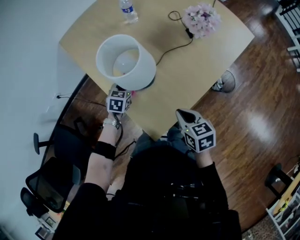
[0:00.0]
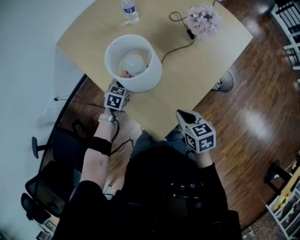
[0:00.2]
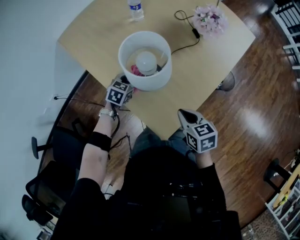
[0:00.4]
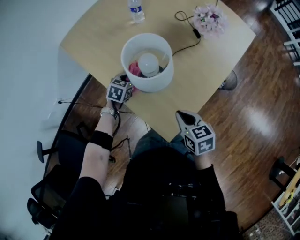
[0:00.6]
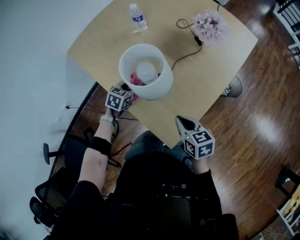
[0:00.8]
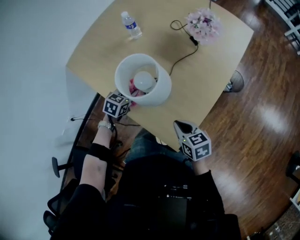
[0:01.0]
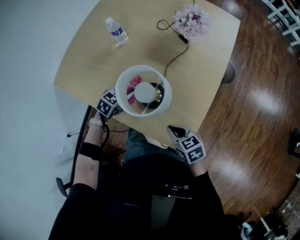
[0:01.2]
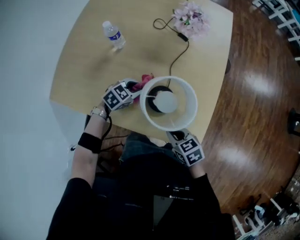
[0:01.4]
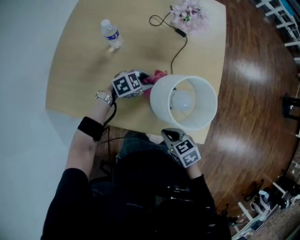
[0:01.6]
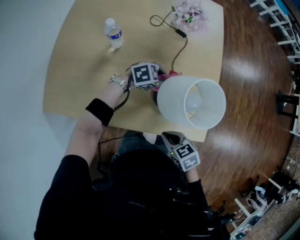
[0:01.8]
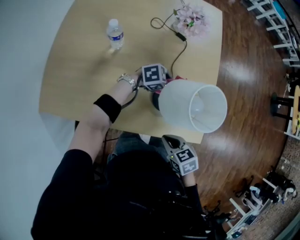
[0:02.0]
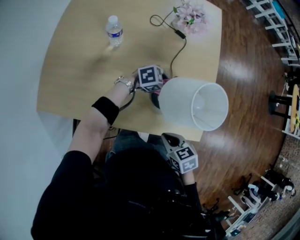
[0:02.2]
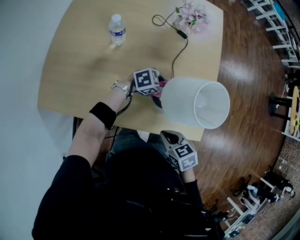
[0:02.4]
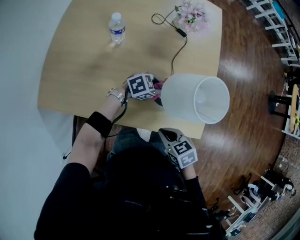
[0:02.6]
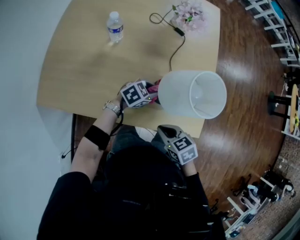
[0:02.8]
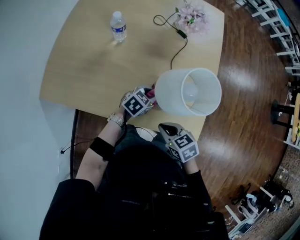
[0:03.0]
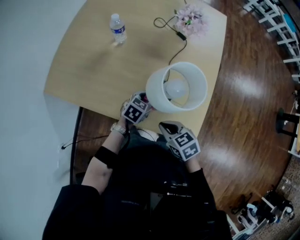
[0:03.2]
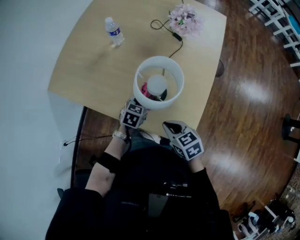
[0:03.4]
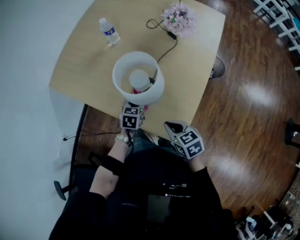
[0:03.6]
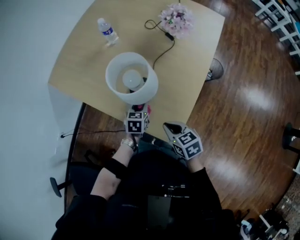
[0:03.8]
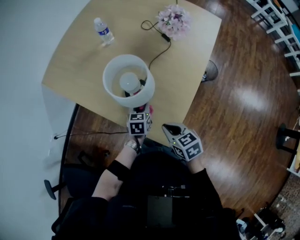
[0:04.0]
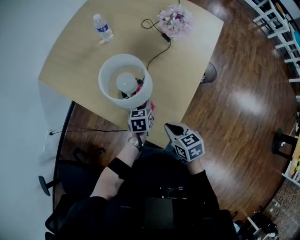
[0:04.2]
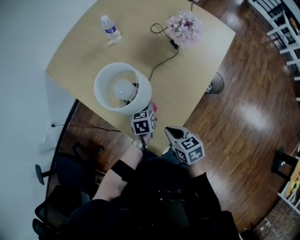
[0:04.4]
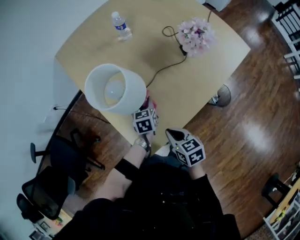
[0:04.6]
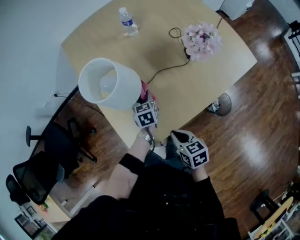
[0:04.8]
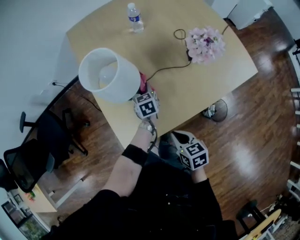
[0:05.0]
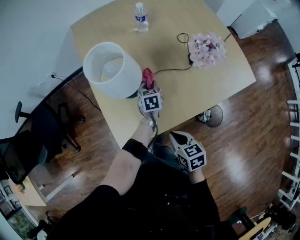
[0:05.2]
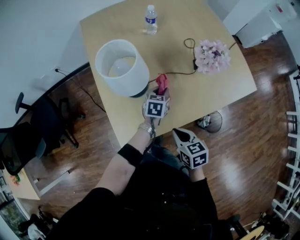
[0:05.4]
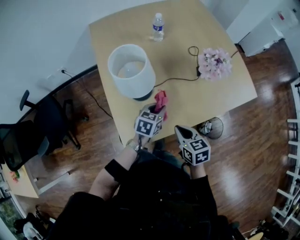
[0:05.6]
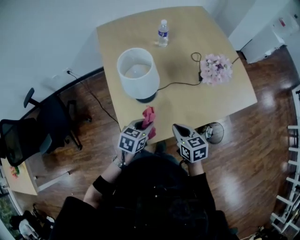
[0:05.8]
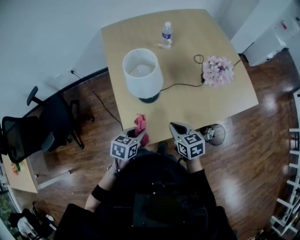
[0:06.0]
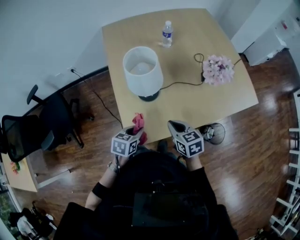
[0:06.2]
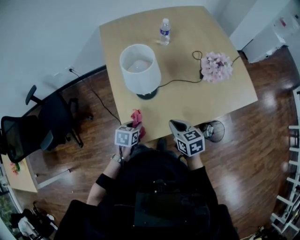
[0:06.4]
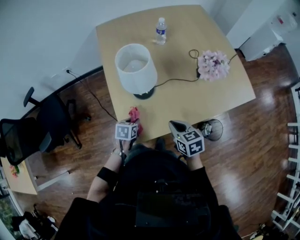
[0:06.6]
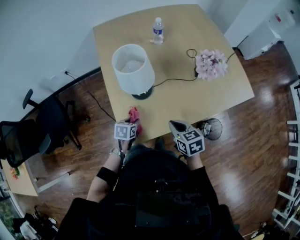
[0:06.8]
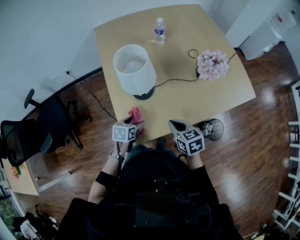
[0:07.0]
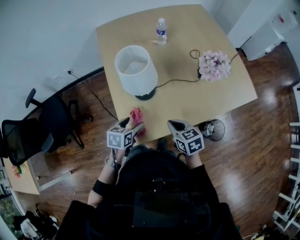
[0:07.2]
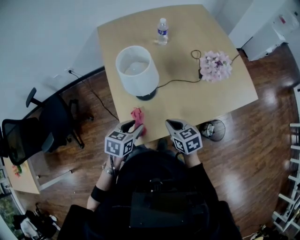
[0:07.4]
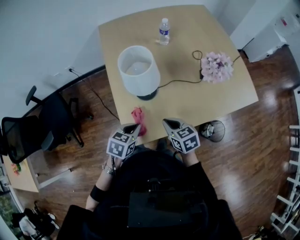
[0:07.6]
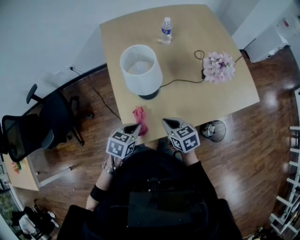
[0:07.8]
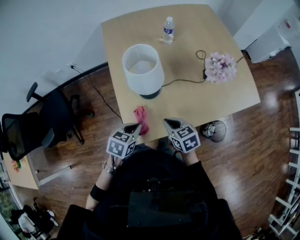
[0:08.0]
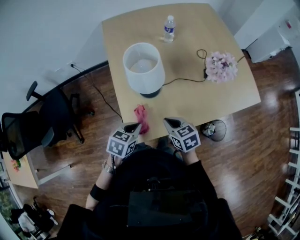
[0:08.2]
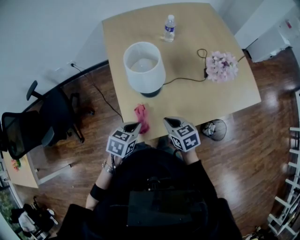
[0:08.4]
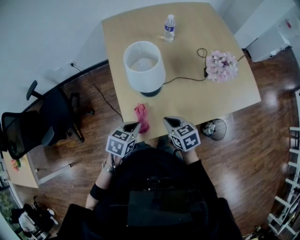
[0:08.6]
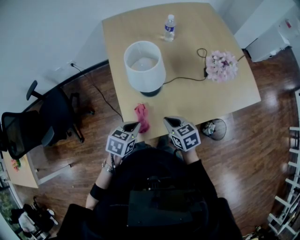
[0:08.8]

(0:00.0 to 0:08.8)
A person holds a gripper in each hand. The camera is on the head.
0:00.0 - 0:01.4: The right gripper moves approximately 20 cm. Meanwhile the left gripper shifts by approximately 10 cm, and turns by about 70 degrees.
0:01.4 - 0:03.0: The right gripper ends up roughly 5 cm from where it was.
0:03.0 - 0:04.4: The right gripper shifts by roughly 25 cm; the left gripper ends up roughly 10 cm from where it was, and swivels roughly 70 degrees.
0:04.4 - 0:05.8: The right gripper changes place by roughly 15 cm, and rotates roughly 30 degrees, while the left gripper changes place by about 15 cm.
0:05.8 - 0:07.4: The left gripper heads to the left, covering some 5 cm, moves roughly 10 cm downward and comes back, and opens and closes again.
0:07.4 - 0:08.8: The left gripper closes up.

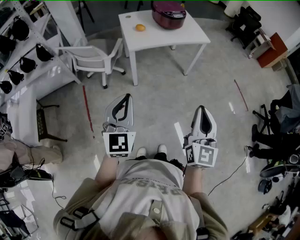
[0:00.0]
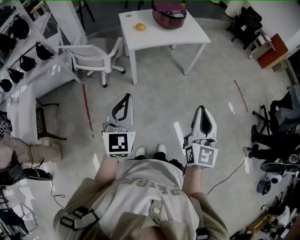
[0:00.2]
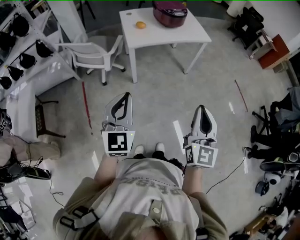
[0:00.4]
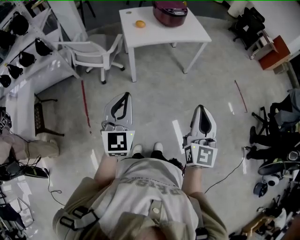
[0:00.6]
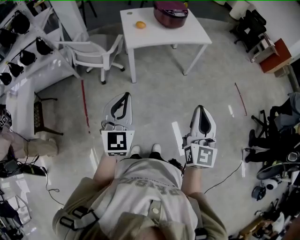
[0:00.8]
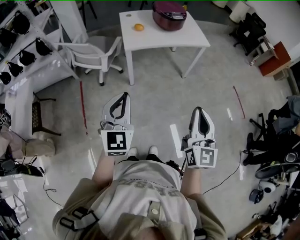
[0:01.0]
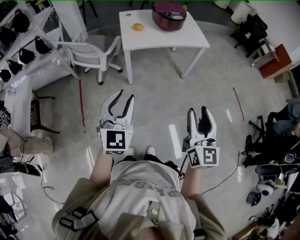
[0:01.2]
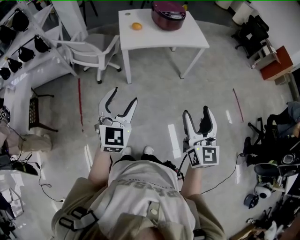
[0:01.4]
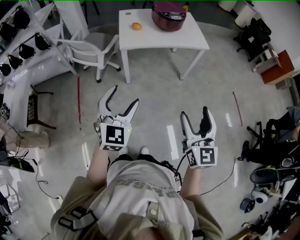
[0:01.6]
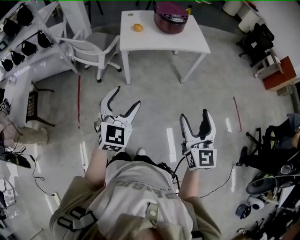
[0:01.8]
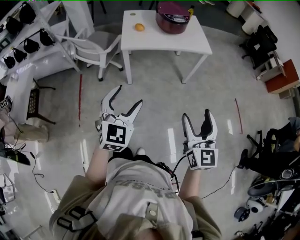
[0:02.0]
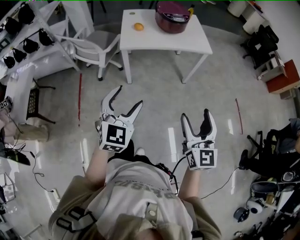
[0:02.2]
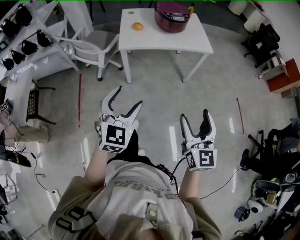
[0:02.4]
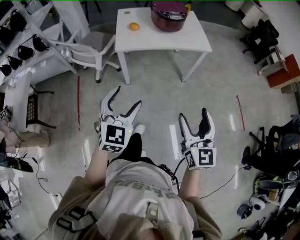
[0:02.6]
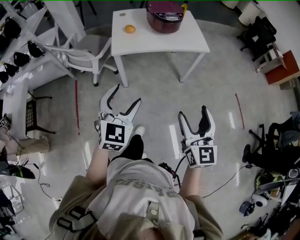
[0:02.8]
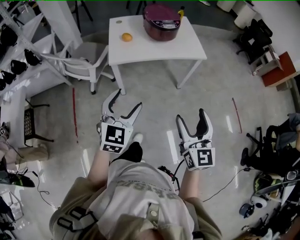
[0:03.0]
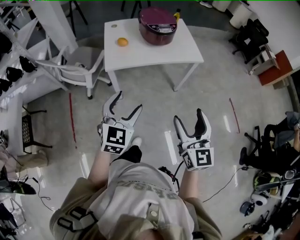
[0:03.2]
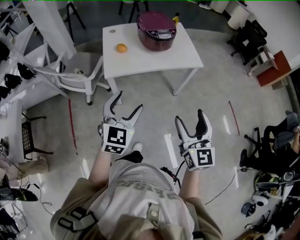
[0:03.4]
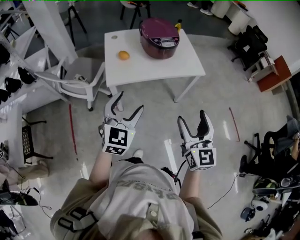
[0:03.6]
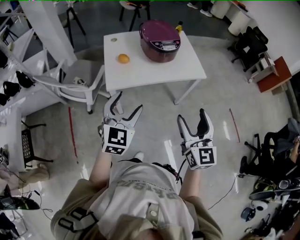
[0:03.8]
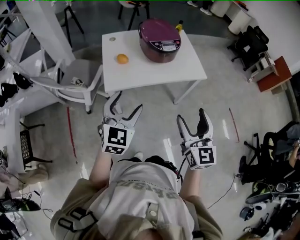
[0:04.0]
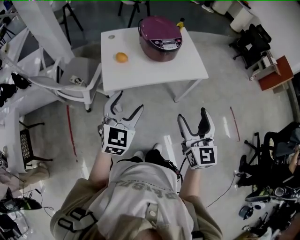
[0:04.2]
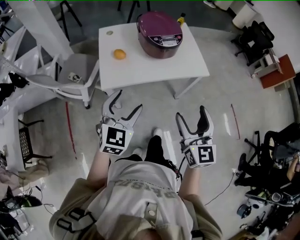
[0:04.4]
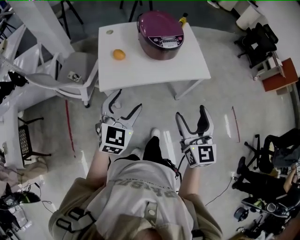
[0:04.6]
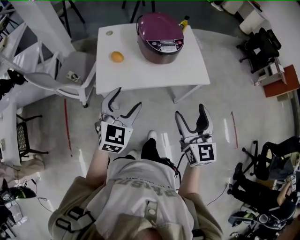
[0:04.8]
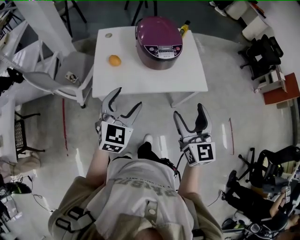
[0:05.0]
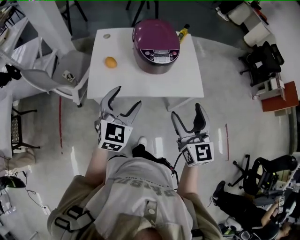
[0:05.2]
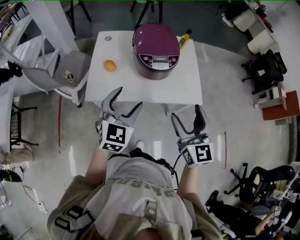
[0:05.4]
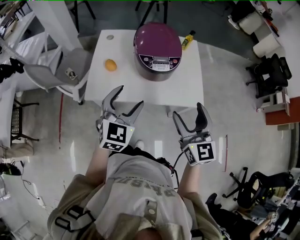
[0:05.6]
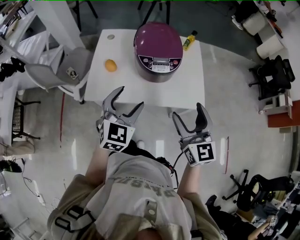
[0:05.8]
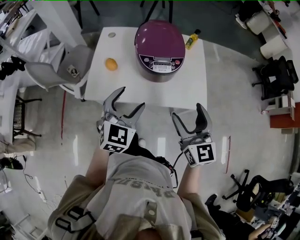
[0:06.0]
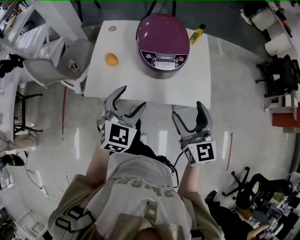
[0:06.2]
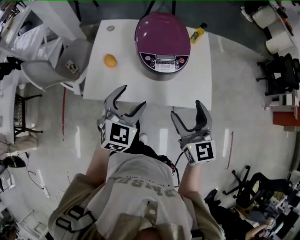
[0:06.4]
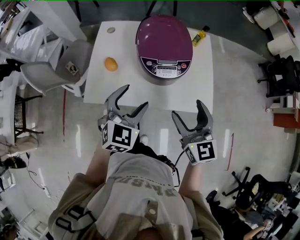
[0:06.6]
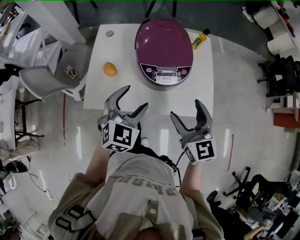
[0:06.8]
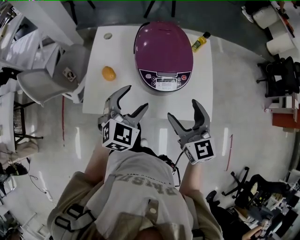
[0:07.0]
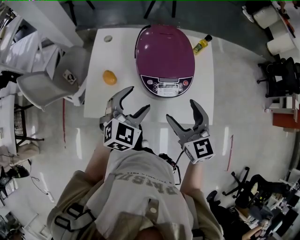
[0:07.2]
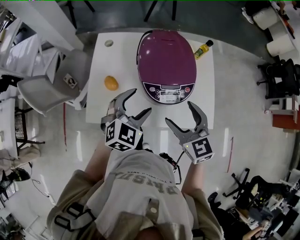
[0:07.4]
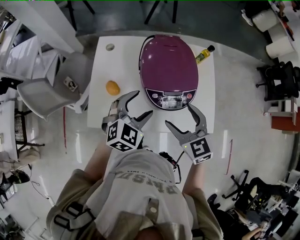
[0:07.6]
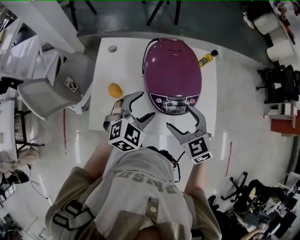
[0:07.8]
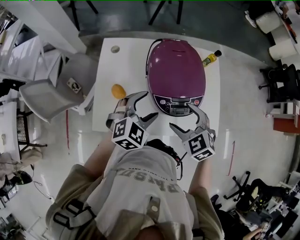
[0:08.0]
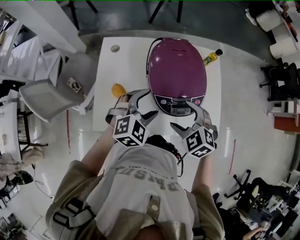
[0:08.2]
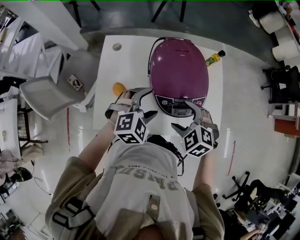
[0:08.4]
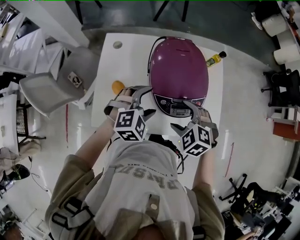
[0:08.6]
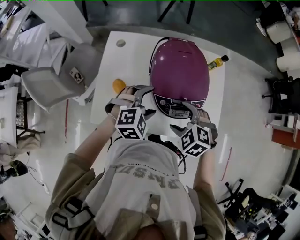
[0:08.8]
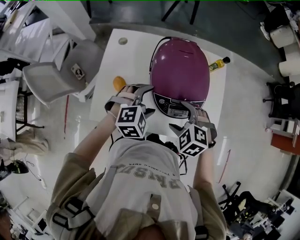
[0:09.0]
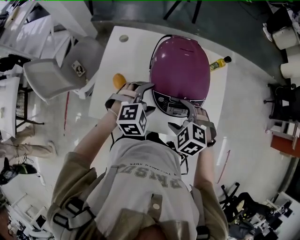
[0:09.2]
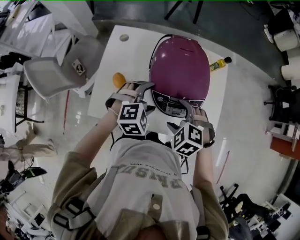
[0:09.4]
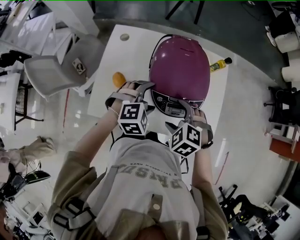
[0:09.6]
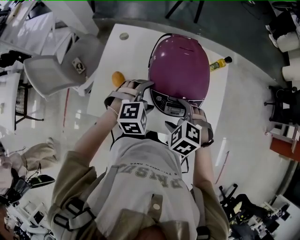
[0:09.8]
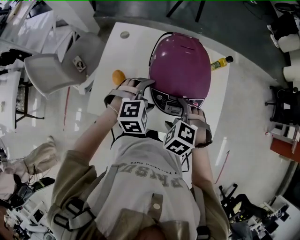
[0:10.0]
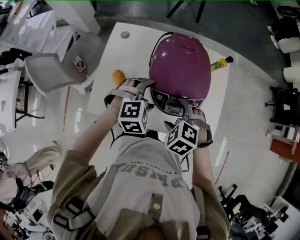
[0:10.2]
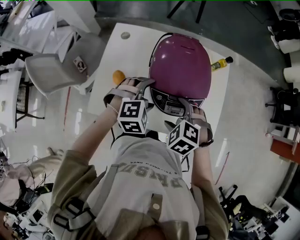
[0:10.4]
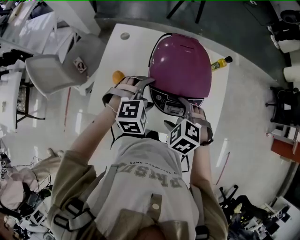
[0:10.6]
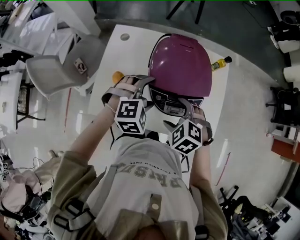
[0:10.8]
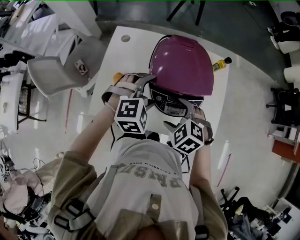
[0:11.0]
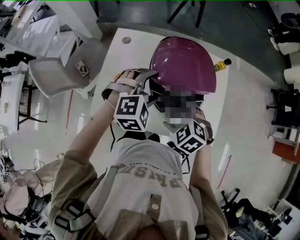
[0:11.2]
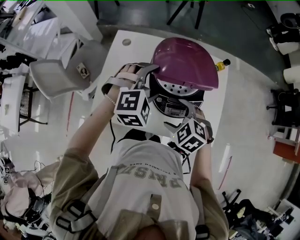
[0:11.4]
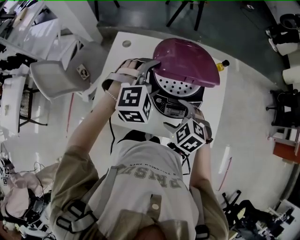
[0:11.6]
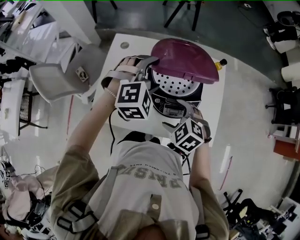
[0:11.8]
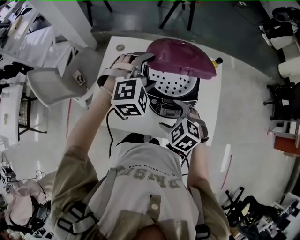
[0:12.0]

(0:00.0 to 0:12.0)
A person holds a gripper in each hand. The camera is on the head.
0:00.0 - 0:01.6: Both grippers travel together to the right and forward, approximately 15 cm. The right gripper opens its fingers, while the left gripper opens up.
0:01.6 - 0:03.0: The two grippers go approximately 15 cm forward.
0:03.0 - 0:04.4: Both grippers move forward, some 20 cm.
0:04.4 - 0:06.0: The grippers both shift forward and to the right by approximately 25 cm. The right gripper rotates some 20 degrees.
0:06.0 - 0:07.6: The right gripper is displaced forward, to the left and downward by roughly 20 cm, and swivels roughly 30 degrees; the left gripper heads forward, covering roughly 20 cm.
0:07.6 - 0:09.0: The left gripper travels downward by roughly 5 cm, and turns by approximately 20 degrees, while the right gripper goes approximately 10 cm downward, and angles its fingers downward, by roughly 30 degrees.
0:09.0 - 0:10.4: There are only small adjustments of the grippers.
0:10.4 - 0:12.0: The left gripper is displaced upward and forward by roughly 15 cm.

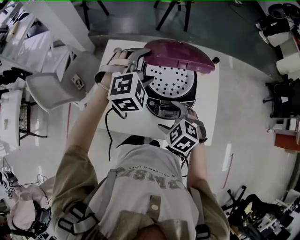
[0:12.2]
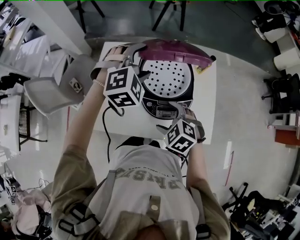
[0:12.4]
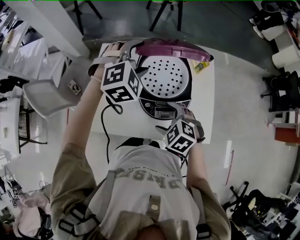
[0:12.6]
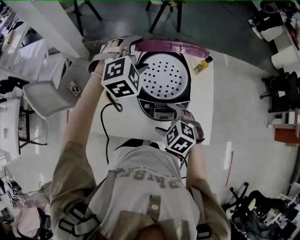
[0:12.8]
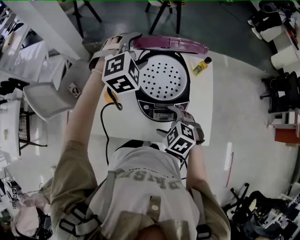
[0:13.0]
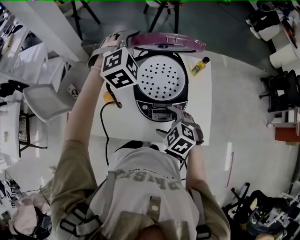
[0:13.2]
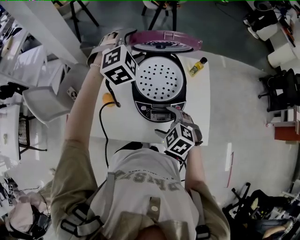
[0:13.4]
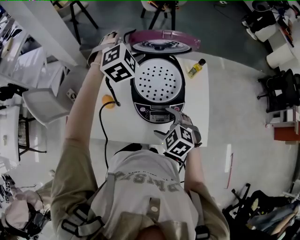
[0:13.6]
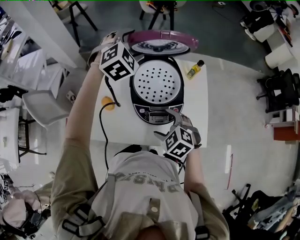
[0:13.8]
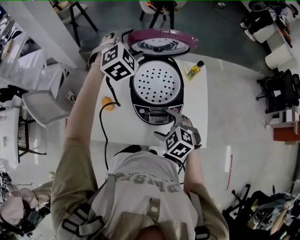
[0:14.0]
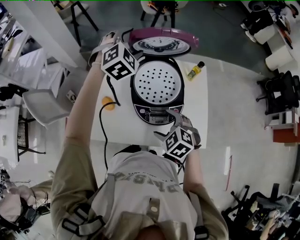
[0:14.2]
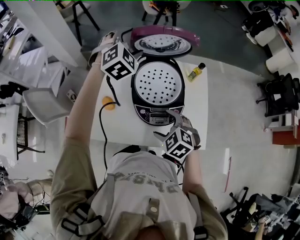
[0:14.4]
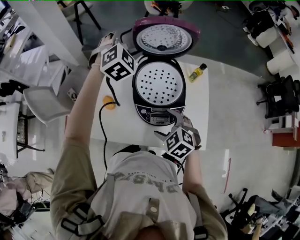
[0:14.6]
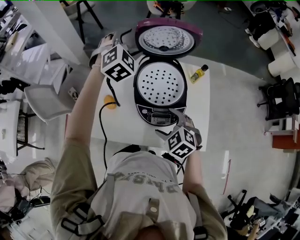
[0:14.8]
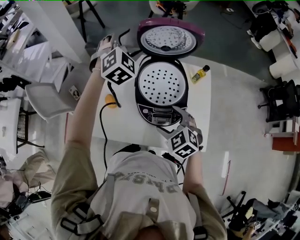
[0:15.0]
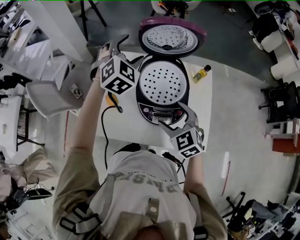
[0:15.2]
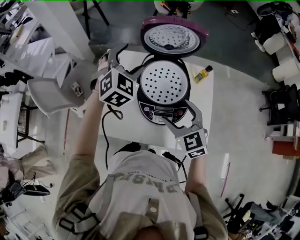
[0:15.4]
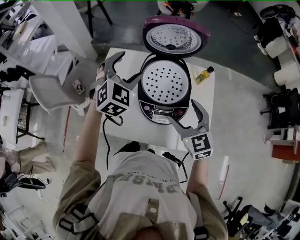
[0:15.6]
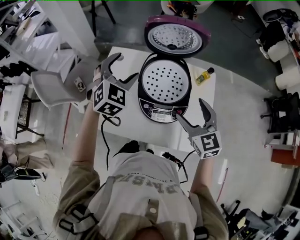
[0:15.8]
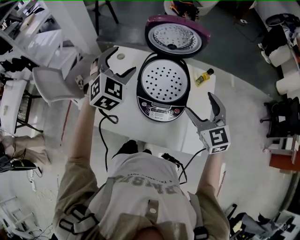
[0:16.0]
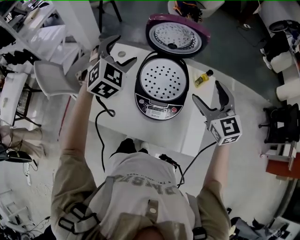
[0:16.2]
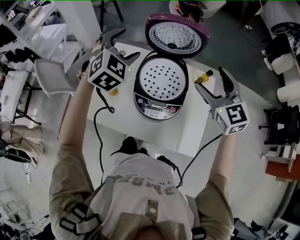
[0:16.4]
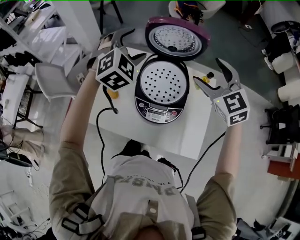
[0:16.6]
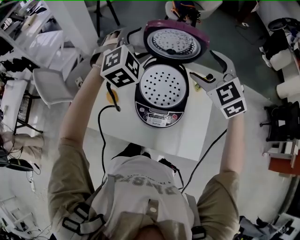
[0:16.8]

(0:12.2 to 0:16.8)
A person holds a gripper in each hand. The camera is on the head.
0:12.2 - 0:13.8: The left gripper goes roughly 10 cm forward and upward.
0:13.8 - 0:15.2: The right gripper goes roughly 5 cm upward, while the left gripper moves to the left, about 5 cm.
0:15.2 - 0:16.8: The right gripper travels upward, forward and to the right by approximately 25 cm, and turns by approximately 20 degrees, while the left gripper goes backward and returns, some 10 cm each way.
